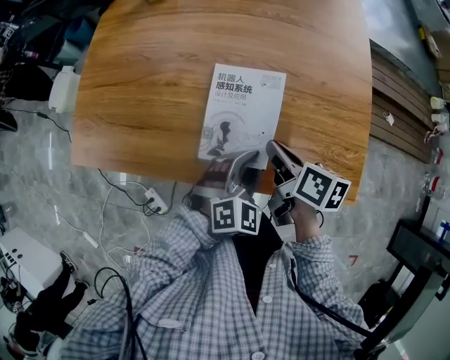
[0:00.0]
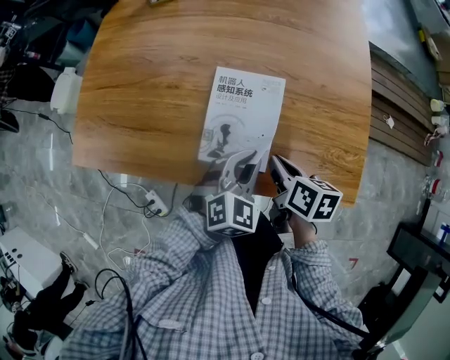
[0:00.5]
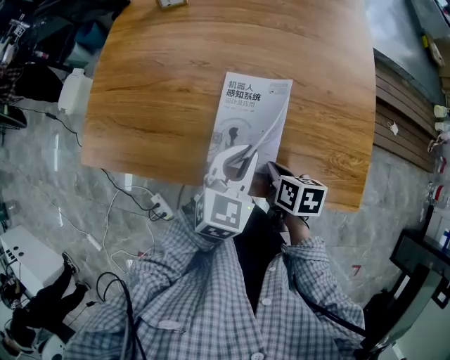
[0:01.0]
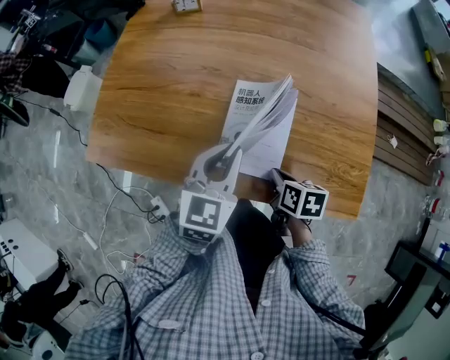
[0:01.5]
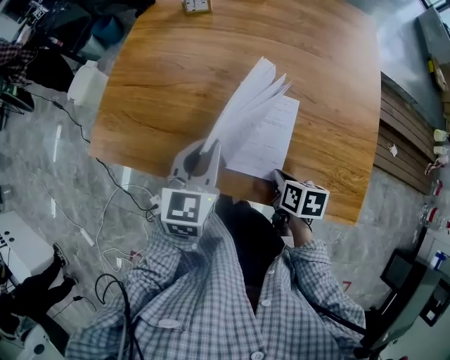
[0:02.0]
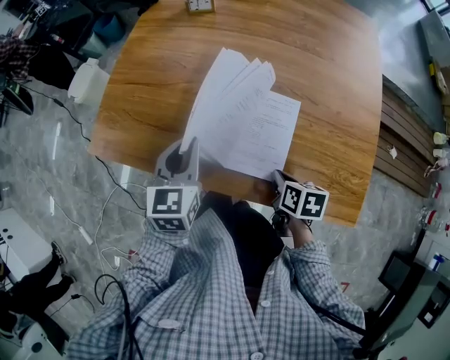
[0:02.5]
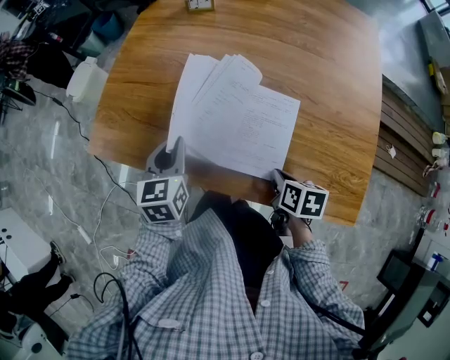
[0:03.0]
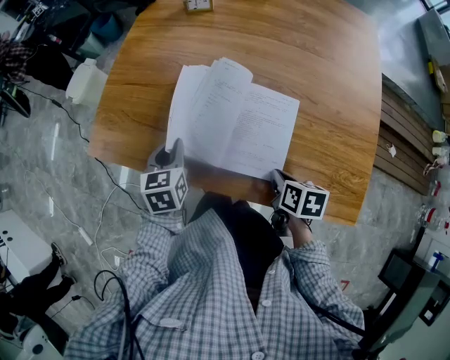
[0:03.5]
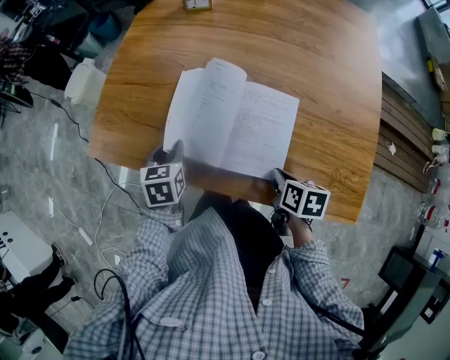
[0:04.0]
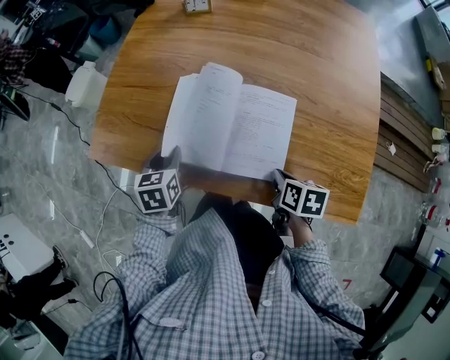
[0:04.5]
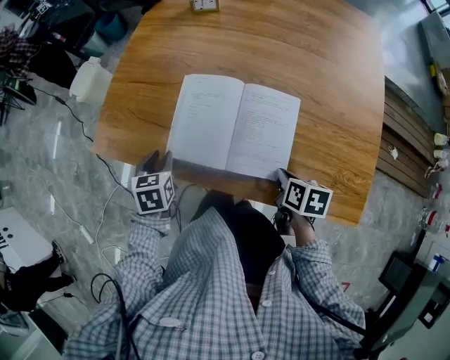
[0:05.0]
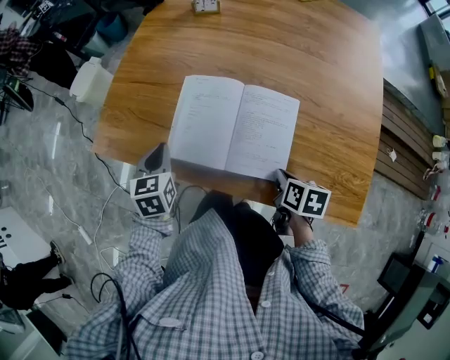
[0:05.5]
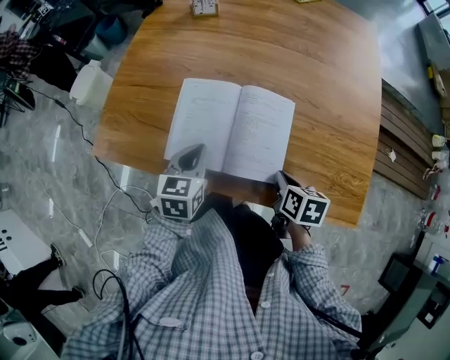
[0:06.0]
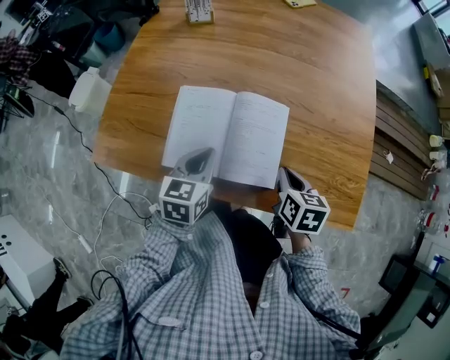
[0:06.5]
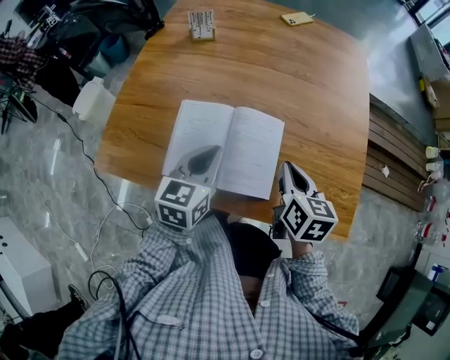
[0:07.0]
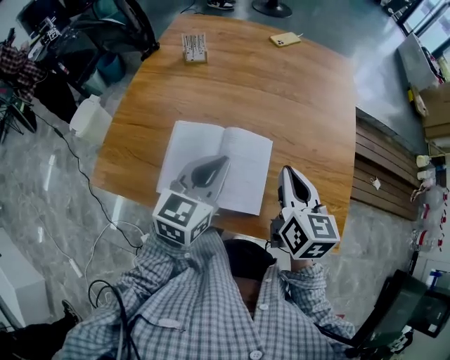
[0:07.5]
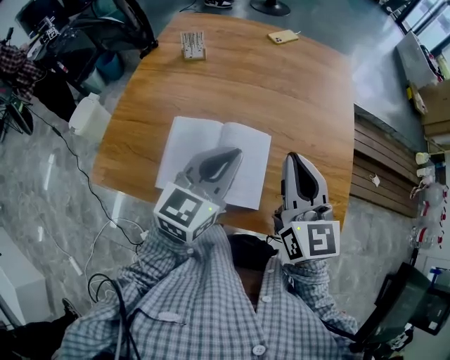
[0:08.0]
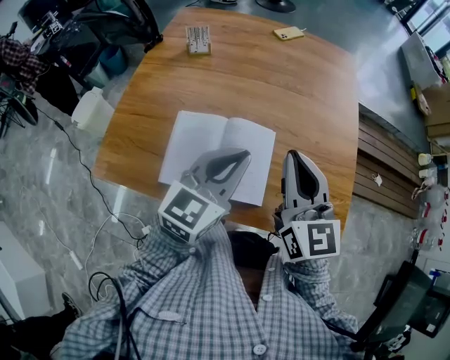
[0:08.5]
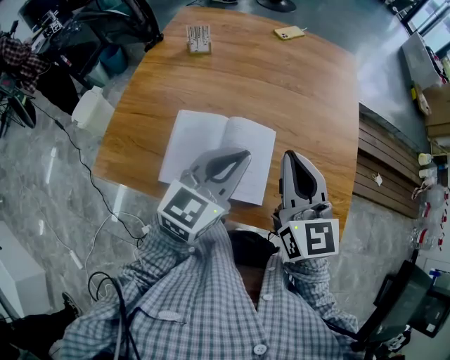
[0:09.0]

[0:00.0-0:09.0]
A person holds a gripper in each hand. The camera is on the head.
0:00.0 to 0:02.0: The left gripper goes roughly 20 cm to the left, upward and forward, and rolls counterclockwise, seen from behind, by about 40 degrees. Meanwhile the right gripper is displaced downward by roughly 5 cm, and changes its angle by roughly 20 degrees.
0:02.0 to 0:04.5: The left gripper moves to the left and downward, about 20 cm, and turns by approximately 30 degrees.
0:04.5 to 0:07.0: The right gripper goes roughly 15 cm upward, and swivels some 30 degrees; the left gripper changes place by approximately 20 cm, turns by roughly 30 degrees, and closes.
0:07.0 to 0:09.0: The right gripper is displaced upward by approximately 15 cm, and turns by about 40 degrees, while the left gripper goes about 15 cm upward and to the right, and turns by approximately 20 degrees.

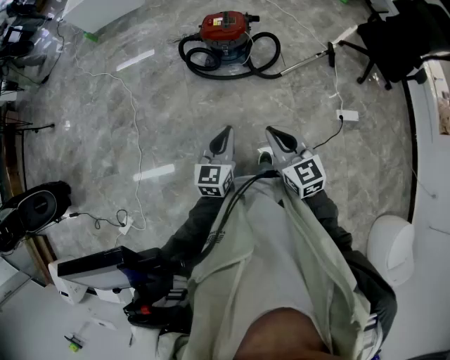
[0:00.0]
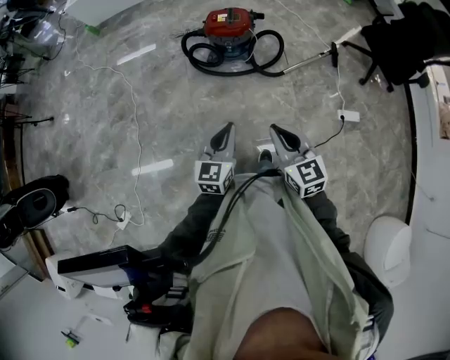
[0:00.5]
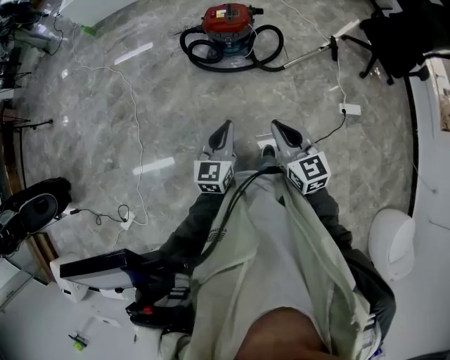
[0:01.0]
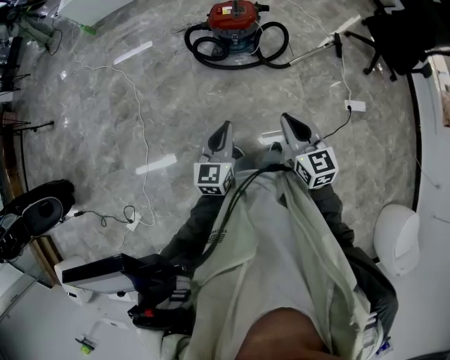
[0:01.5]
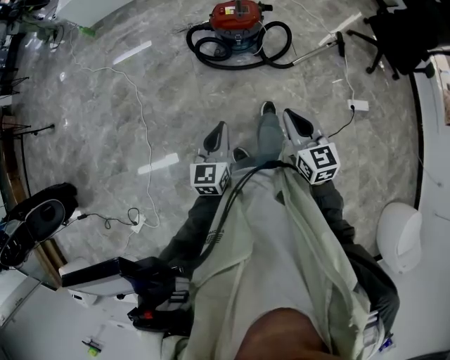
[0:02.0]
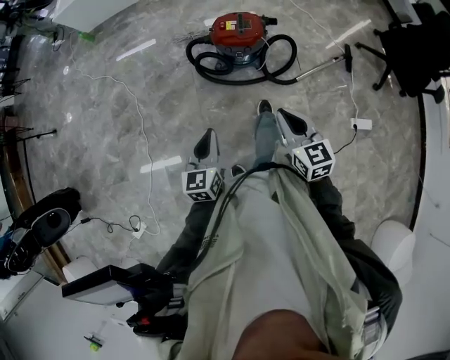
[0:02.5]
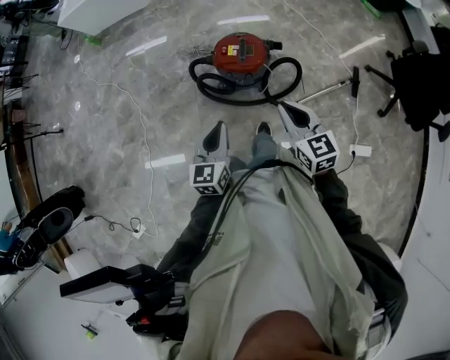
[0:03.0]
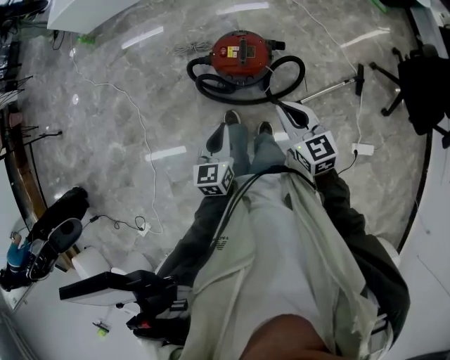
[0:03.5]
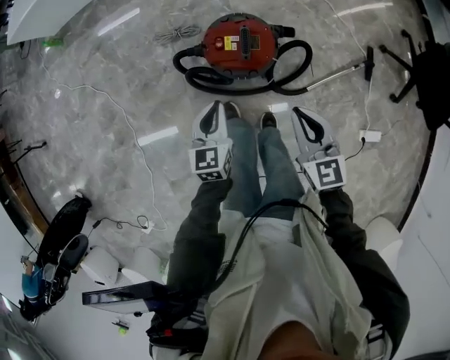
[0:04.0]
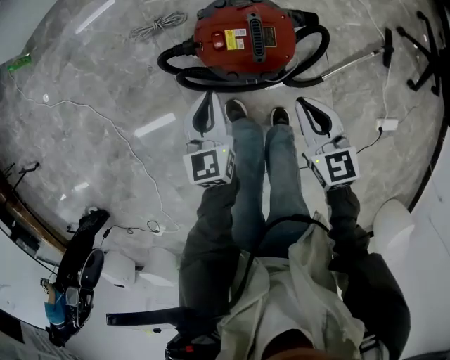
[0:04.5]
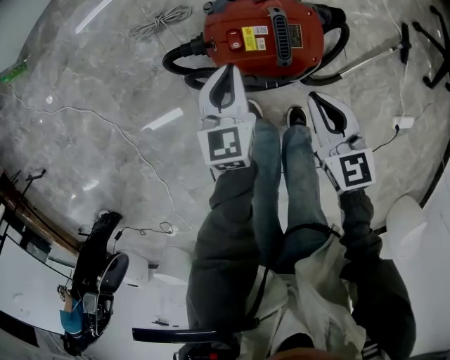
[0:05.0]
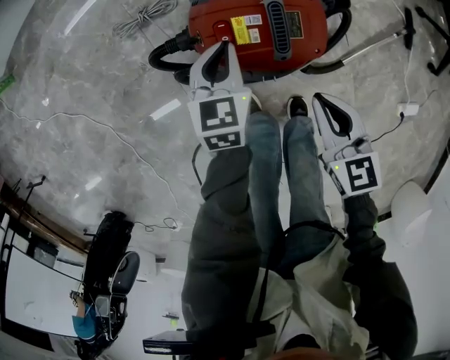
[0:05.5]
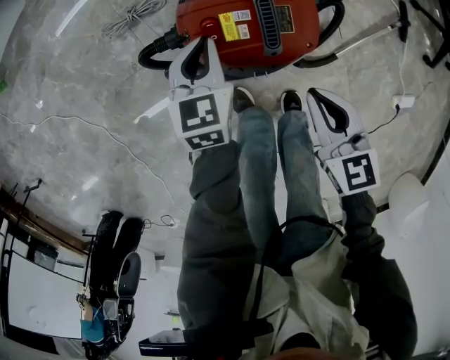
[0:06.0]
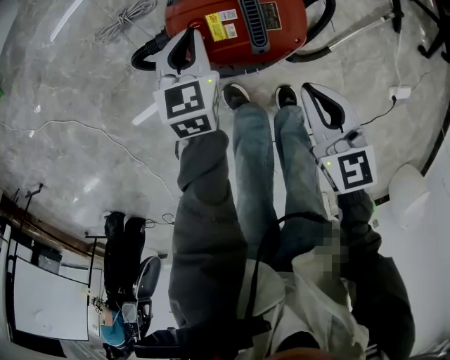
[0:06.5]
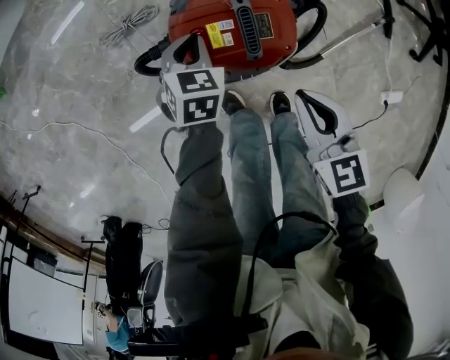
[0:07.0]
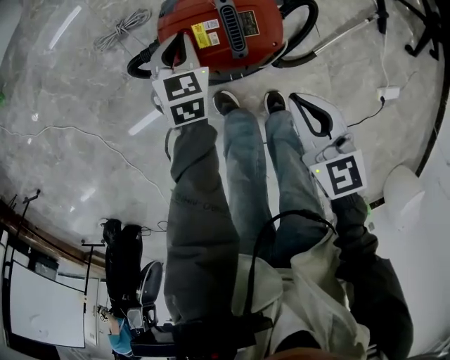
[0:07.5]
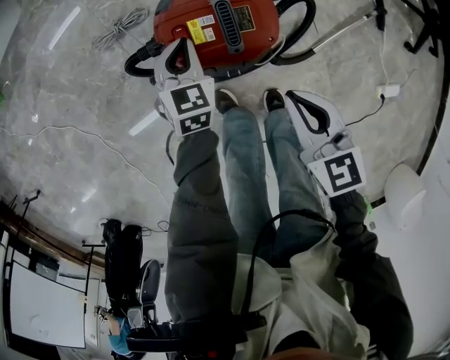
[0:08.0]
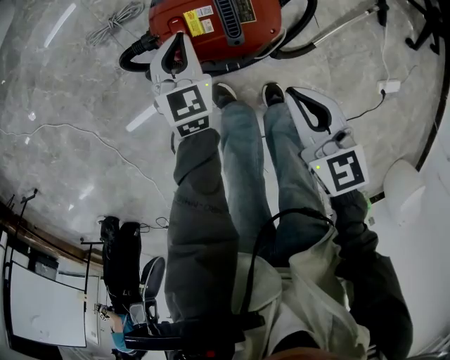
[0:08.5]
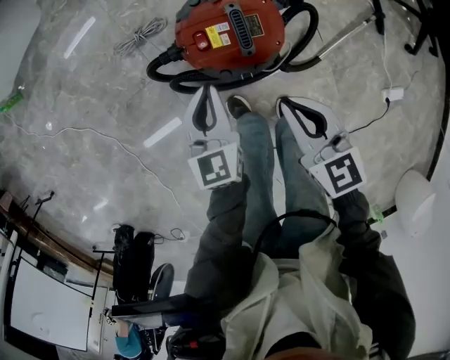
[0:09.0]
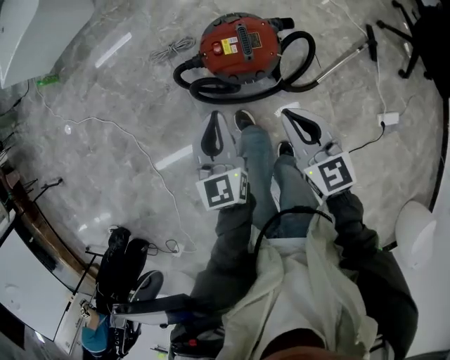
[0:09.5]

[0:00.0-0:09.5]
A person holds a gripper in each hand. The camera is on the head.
0:00.0 to 0:02.0: The left gripper is displaced to the left by roughly 10 cm. The right gripper goes roughly 5 cm forward.
0:02.0 to 0:04.0: The two grippers travel together, forward, some 50 cm.
0:04.0 to 0:05.5: The right gripper heads downward, covering some 25 cm. The left gripper travels downward and forward by roughly 30 cm.
0:05.5 to 0:07.5: The right gripper travels upward by about 5 cm.
0:07.5 to 0:09.5: The left gripper travels upward and backward by roughly 35 cm, and swivels roughly 30 degrees, while the right gripper shifts about 20 cm upward.

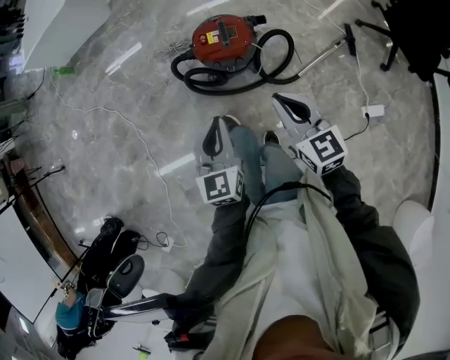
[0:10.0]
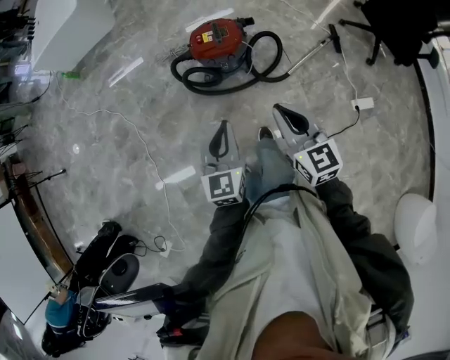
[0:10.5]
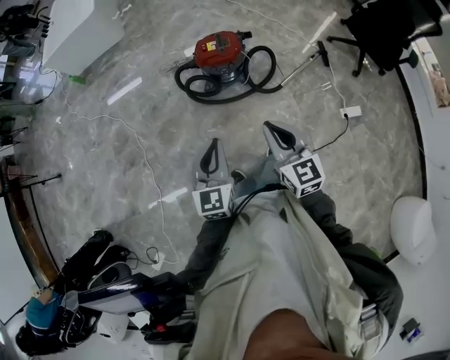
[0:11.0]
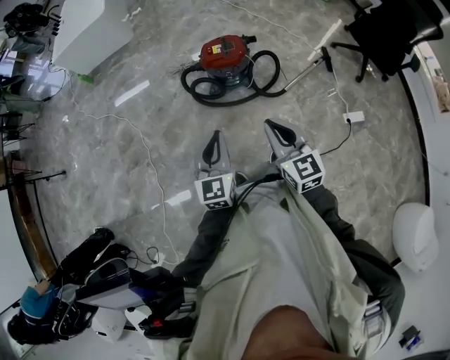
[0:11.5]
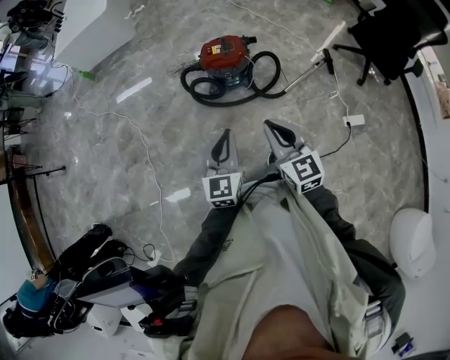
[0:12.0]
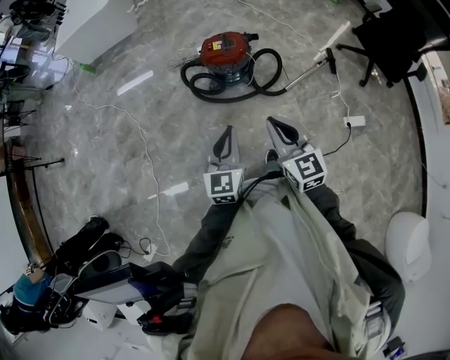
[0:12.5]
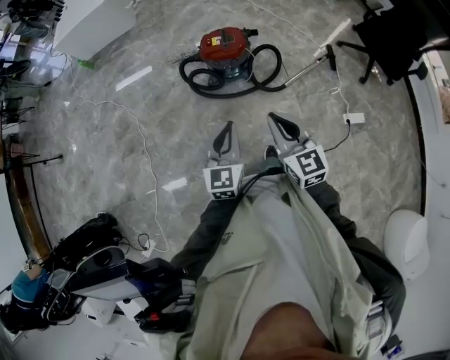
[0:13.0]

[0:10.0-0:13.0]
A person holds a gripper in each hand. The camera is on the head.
0:10.0 to 0:11.5: The grippers both shift backward and upward by roughly 25 cm.
0:11.5 to 0:13.0: The left gripper moves to the right, approximately 5 cm.

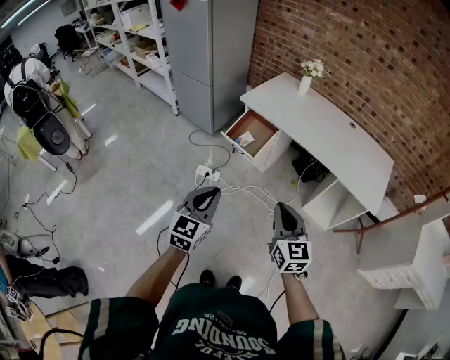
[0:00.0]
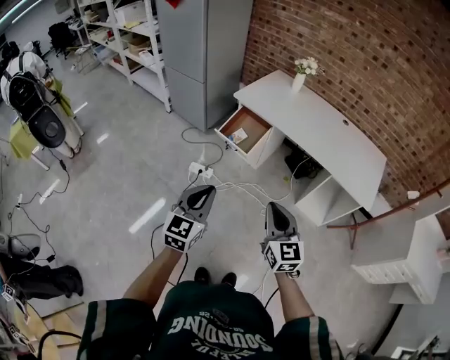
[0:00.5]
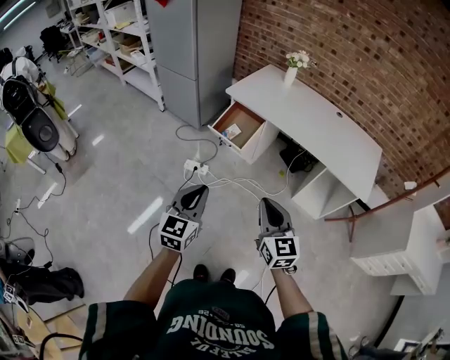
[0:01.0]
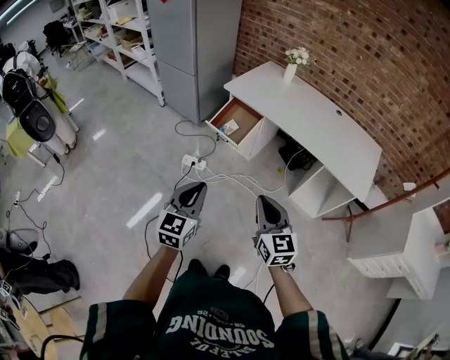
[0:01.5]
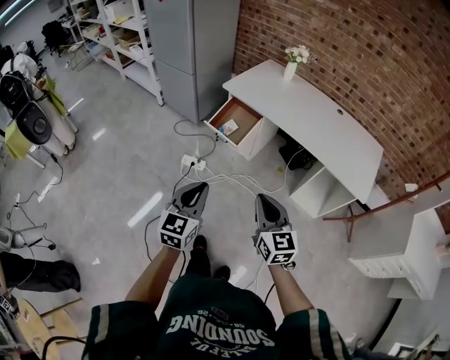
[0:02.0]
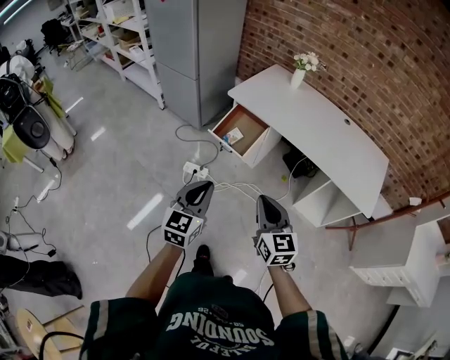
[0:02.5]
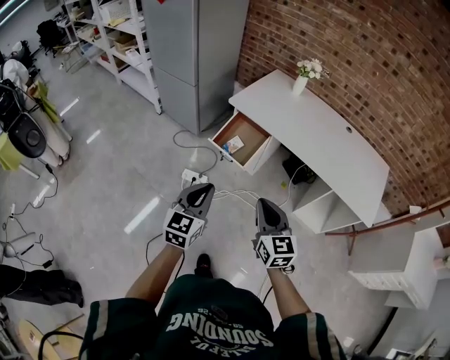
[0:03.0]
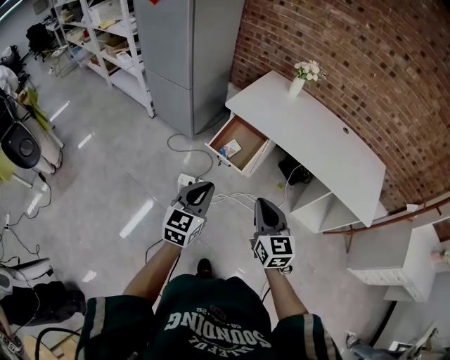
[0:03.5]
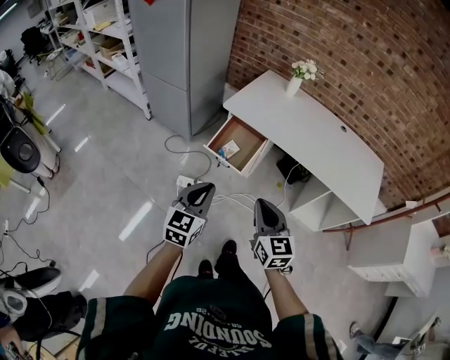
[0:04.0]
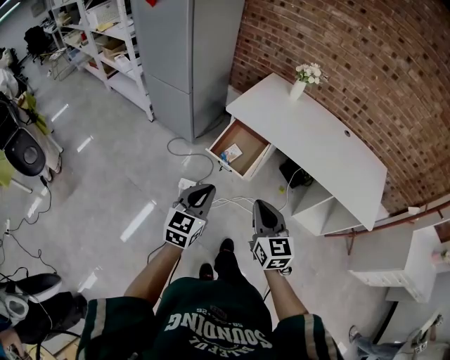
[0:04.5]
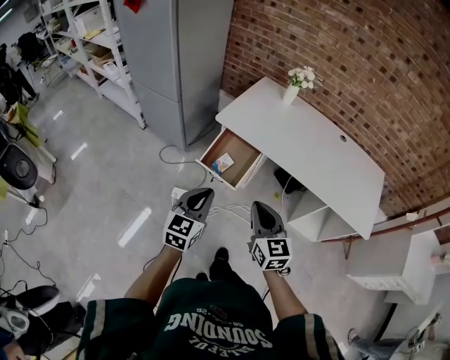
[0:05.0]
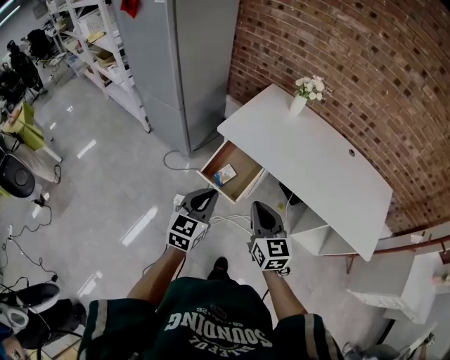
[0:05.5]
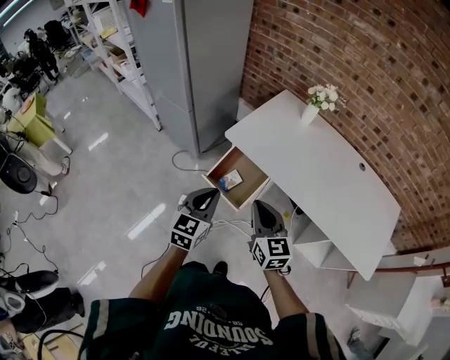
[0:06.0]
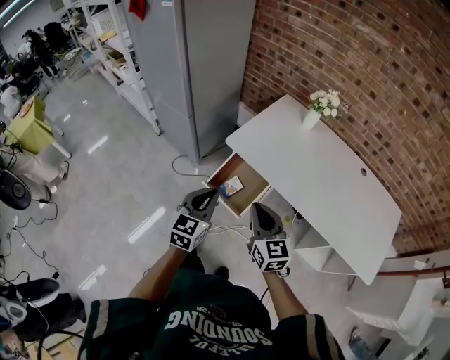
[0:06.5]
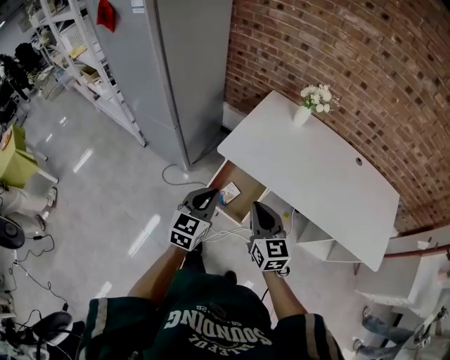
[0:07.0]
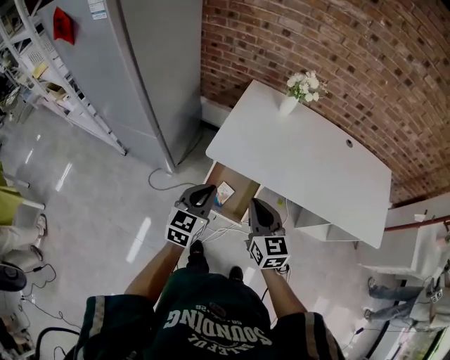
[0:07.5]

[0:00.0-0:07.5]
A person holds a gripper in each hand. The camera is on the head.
0:00.0 to 0:02.0: There are only small adjustments of the grippers.
0:02.0 to 0:04.0: The two grippers go roughly 20 cm forward and to the left.
0:04.0 to 0:05.5: Both grippers travel together forward, some 20 cm.
0:05.5 to 0:07.5: The left gripper is displaced forward by roughly 20 cm; the right gripper is displaced forward and to the left by approximately 20 cm.
